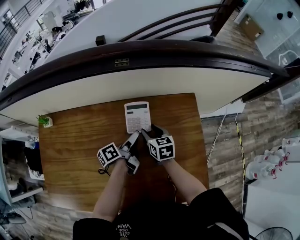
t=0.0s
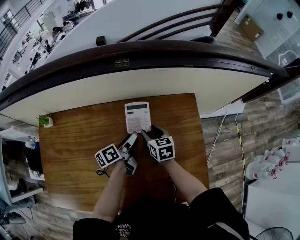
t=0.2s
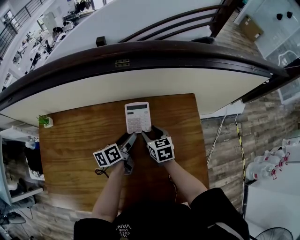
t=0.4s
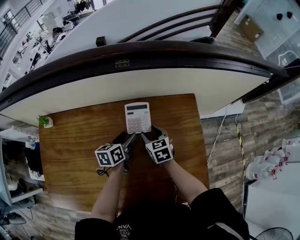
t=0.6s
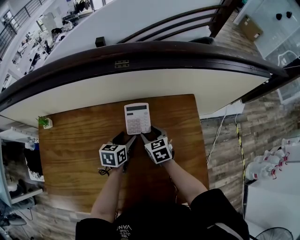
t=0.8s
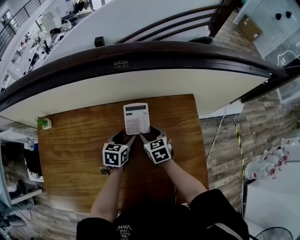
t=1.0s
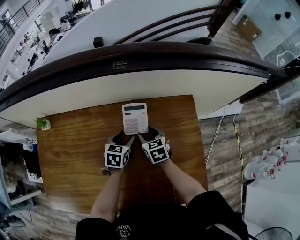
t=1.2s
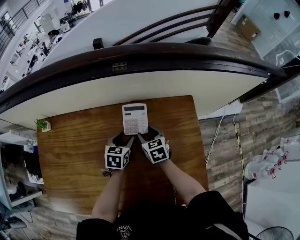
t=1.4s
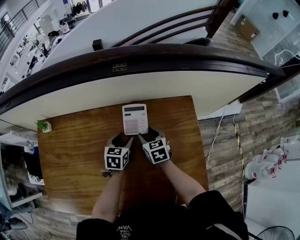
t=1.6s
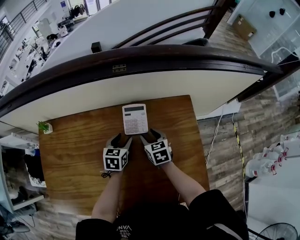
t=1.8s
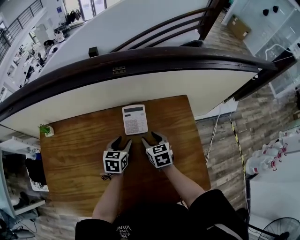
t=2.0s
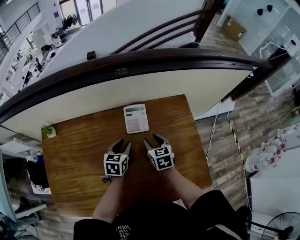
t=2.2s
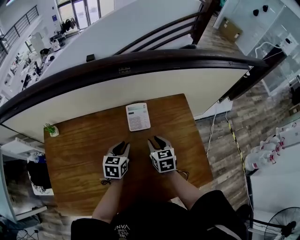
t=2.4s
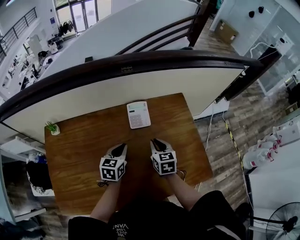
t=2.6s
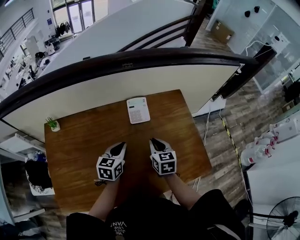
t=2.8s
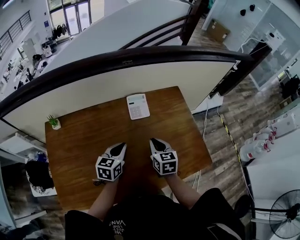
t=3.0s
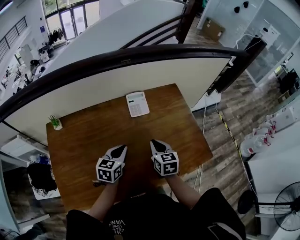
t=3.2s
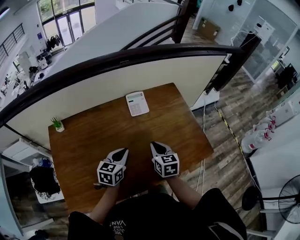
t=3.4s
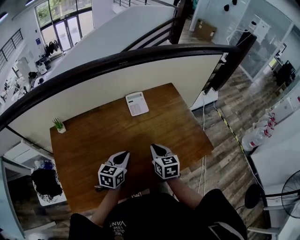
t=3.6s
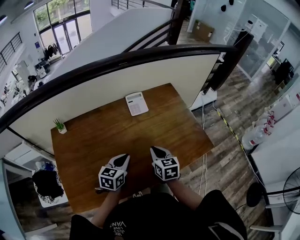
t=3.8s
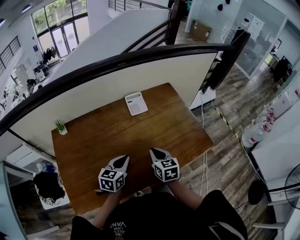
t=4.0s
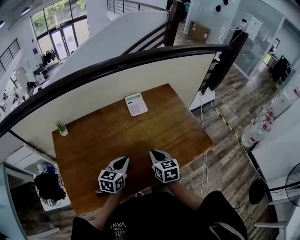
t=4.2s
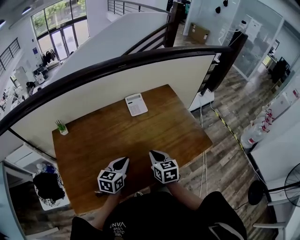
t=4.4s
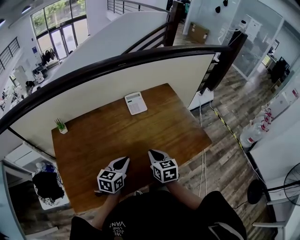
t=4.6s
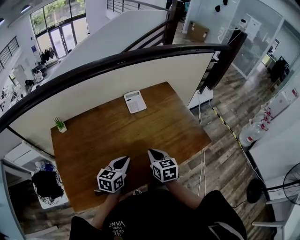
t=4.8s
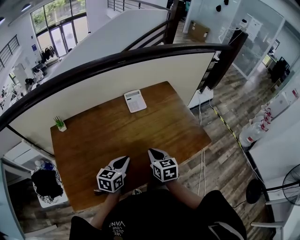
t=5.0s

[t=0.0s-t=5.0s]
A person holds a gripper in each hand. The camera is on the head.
t=0.0s to t=1.6s: The left gripper twists roughly 60 degrees clockwise, seen from behind.
t=1.6s to t=3.4s: Both grippers travel together backward and upward, some 25 cm. The right gripper changes its angle by about 30 degrees, and closes up. The left gripper changes its angle by roughly 20 degrees, and closes its fingers.
t=3.4s to t=5.0s: The grippers both shift backward by about 10 cm.

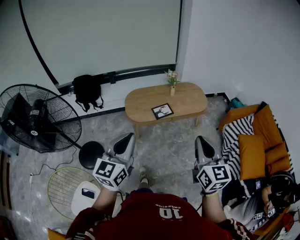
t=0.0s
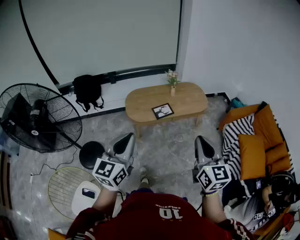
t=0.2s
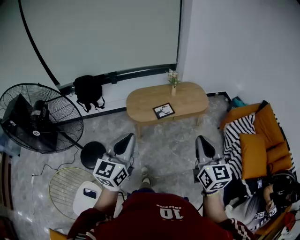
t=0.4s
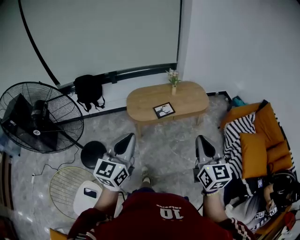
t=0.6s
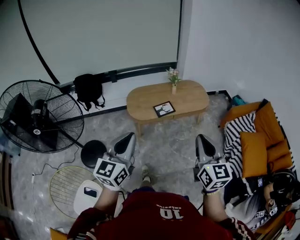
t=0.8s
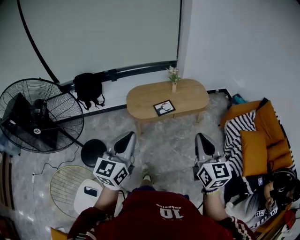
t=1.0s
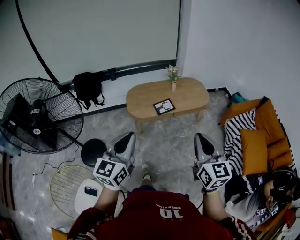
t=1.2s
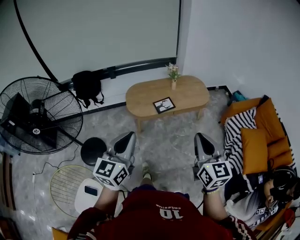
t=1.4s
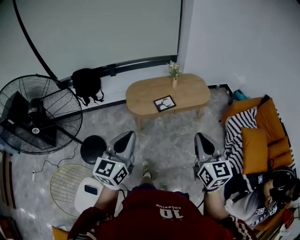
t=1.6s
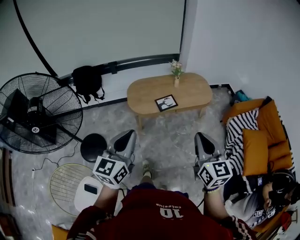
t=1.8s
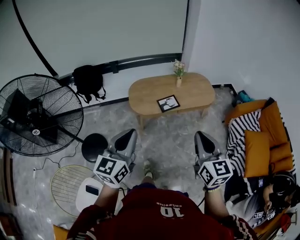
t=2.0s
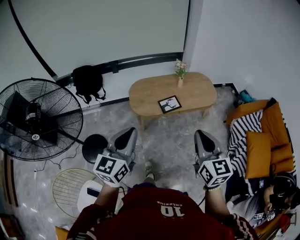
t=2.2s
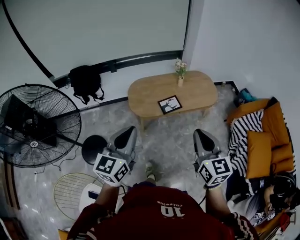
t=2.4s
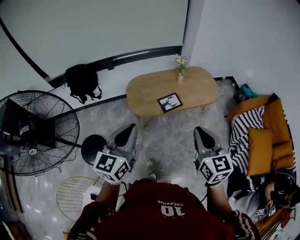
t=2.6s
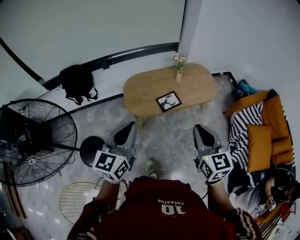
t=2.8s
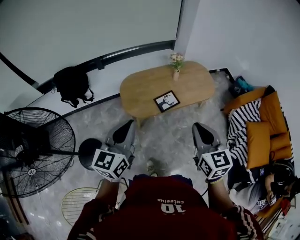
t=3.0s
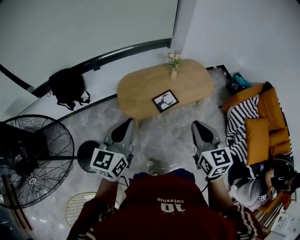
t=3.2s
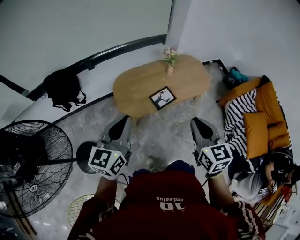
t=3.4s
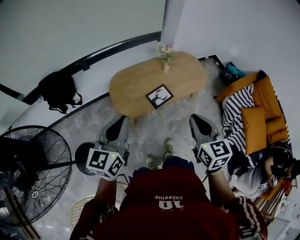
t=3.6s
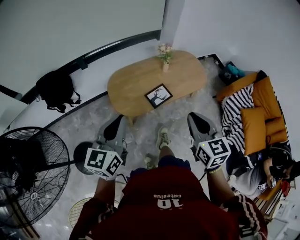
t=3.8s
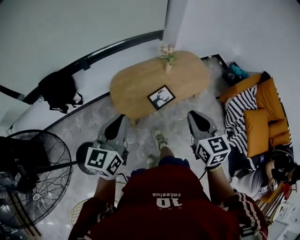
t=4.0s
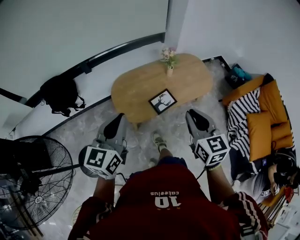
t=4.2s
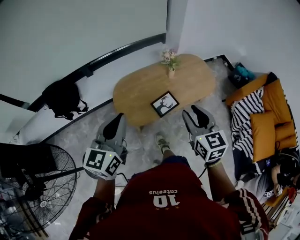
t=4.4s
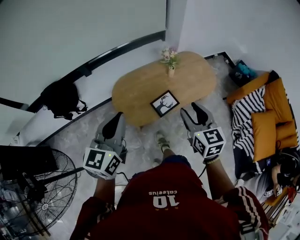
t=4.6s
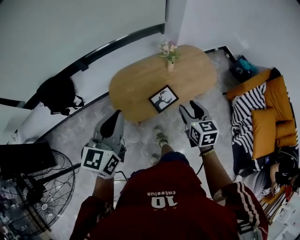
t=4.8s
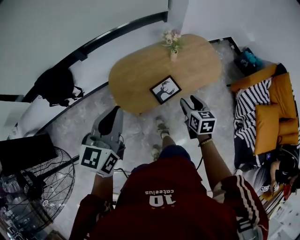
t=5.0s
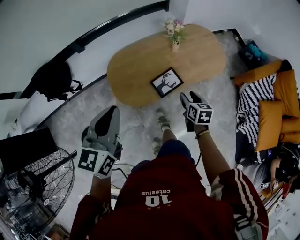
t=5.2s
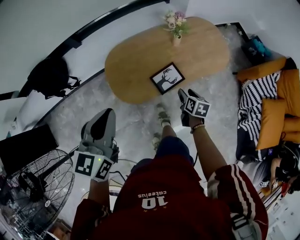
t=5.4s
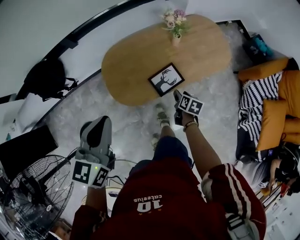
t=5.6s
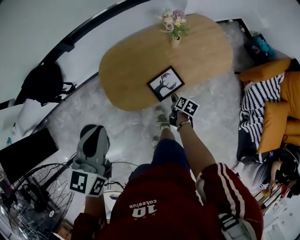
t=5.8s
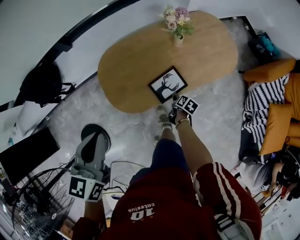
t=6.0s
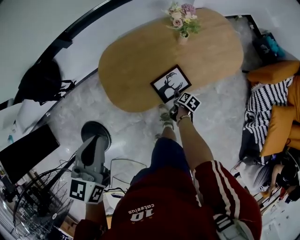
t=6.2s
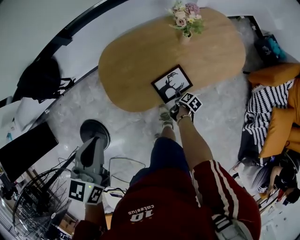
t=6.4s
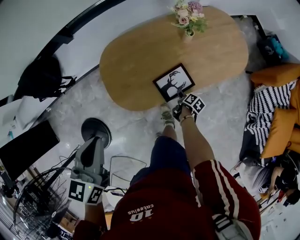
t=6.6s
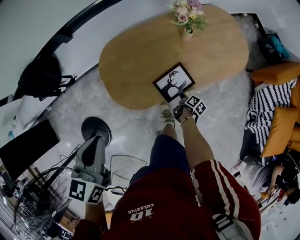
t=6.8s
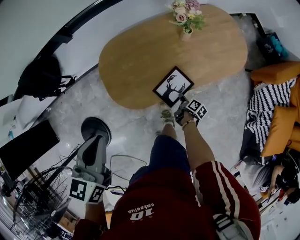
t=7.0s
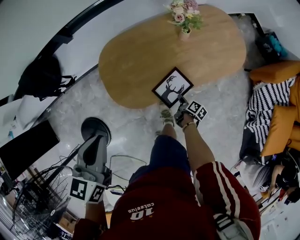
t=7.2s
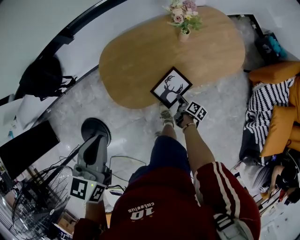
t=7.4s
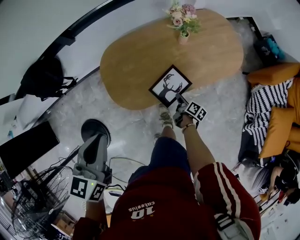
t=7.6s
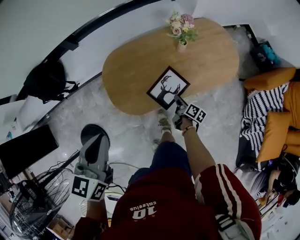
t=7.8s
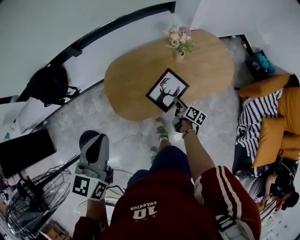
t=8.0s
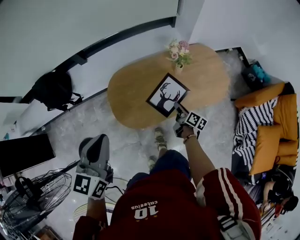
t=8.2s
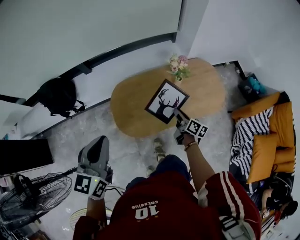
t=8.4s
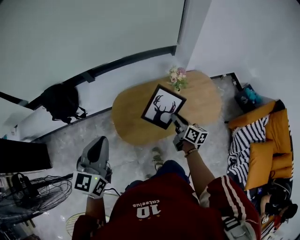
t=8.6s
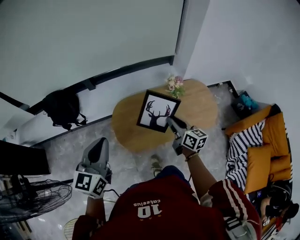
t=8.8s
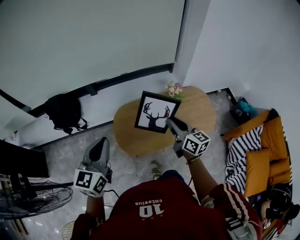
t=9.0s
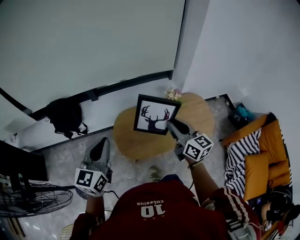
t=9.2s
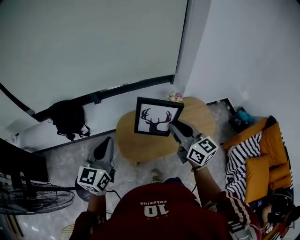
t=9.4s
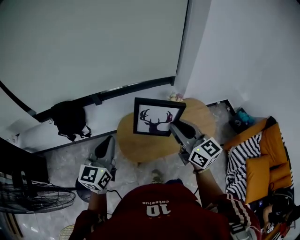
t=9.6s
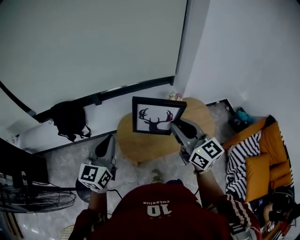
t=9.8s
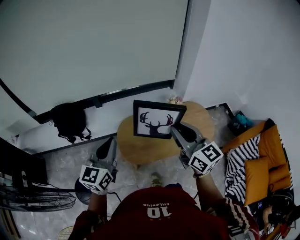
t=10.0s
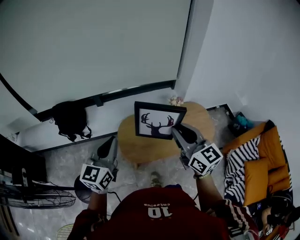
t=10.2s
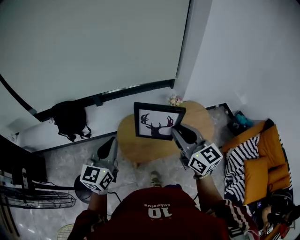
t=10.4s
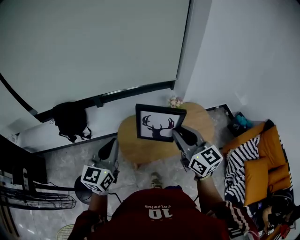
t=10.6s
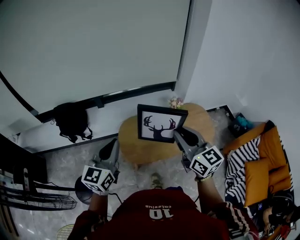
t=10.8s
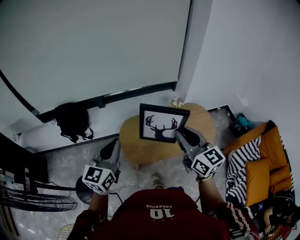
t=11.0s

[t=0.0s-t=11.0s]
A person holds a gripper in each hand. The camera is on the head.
t=0.0s to t=1.6s: The grippers move only a little.
t=1.6s to t=3.2s: Both grippers travel together forward and to the left, roughly 30 cm.
t=3.2s to t=4.8s: The right gripper heads forward and downward, covering about 25 cm, and opens its fingers. Meanwhile the left gripper goes about 15 cm forward.
t=4.8s to t=6.2s: The right gripper is displaced downward by about 50 cm, and rolls clockwise, seen from behind, by about 60 degrees. Meanwhile the left gripper heads downward and forward, covering approximately 15 cm, and rotates some 20 degrees.
t=6.2s to t=7.8s: The right gripper is displaced upward by approximately 10 cm, angles its fingers upward, by about 30 degrees, and closes.
t=7.8s to t=9.4s: The left gripper is displaced upward by approximately 15 cm, and changes its angle by approximately 30 degrees; the right gripper shifts roughly 60 cm upward, and rotates around the line of its fingers by some 60 degrees, counterclockwise from behind.
t=9.4s to t=11.0s: The right gripper travels upward by approximately 5 cm.

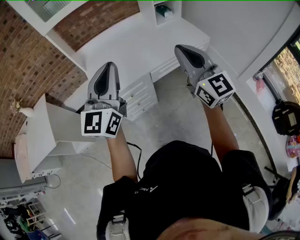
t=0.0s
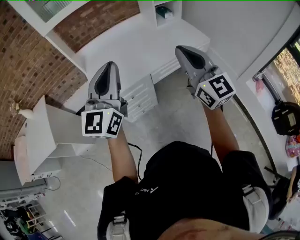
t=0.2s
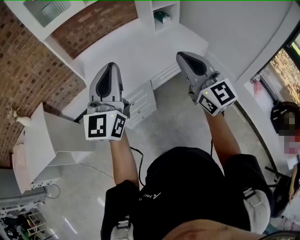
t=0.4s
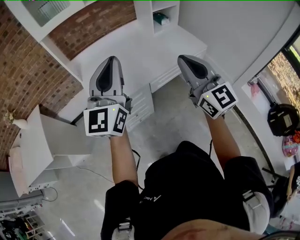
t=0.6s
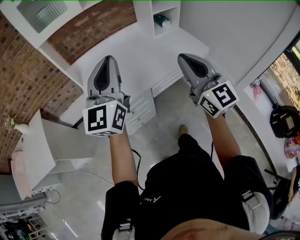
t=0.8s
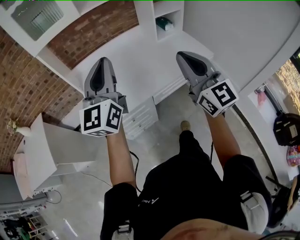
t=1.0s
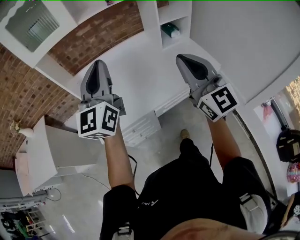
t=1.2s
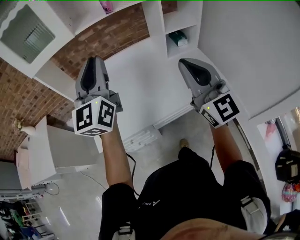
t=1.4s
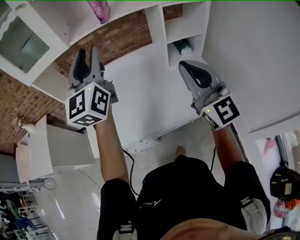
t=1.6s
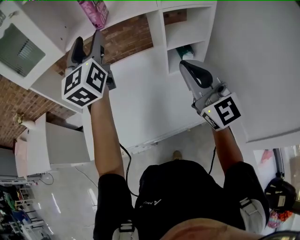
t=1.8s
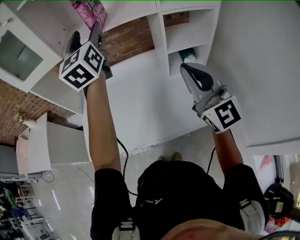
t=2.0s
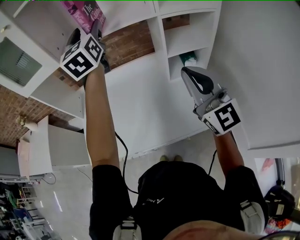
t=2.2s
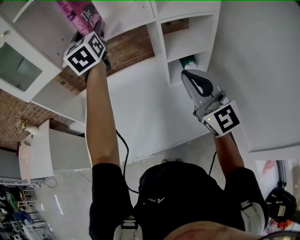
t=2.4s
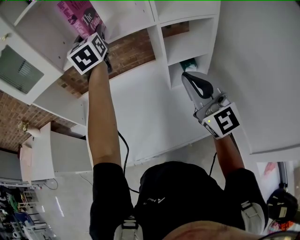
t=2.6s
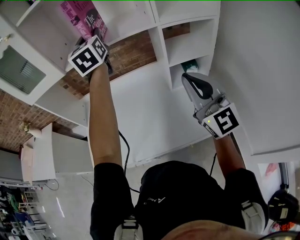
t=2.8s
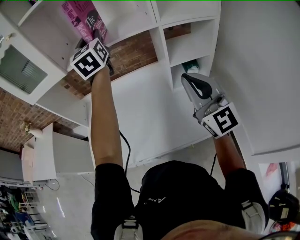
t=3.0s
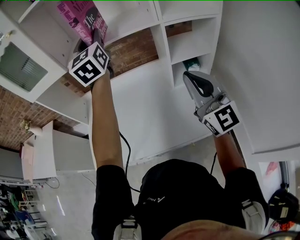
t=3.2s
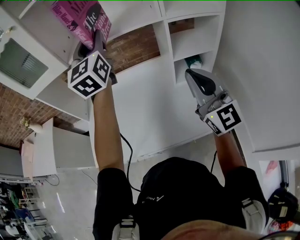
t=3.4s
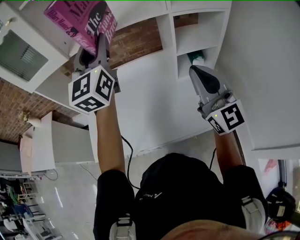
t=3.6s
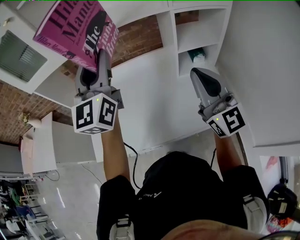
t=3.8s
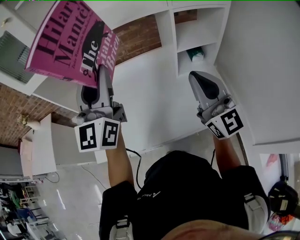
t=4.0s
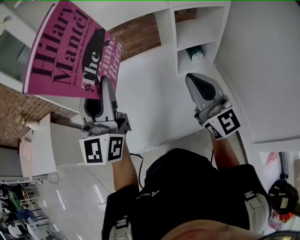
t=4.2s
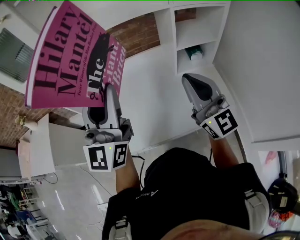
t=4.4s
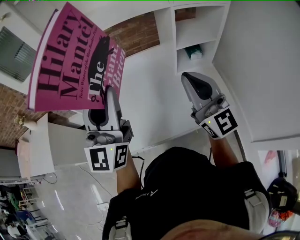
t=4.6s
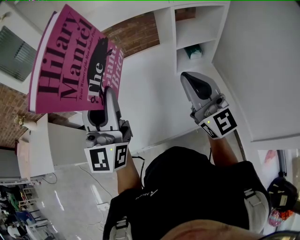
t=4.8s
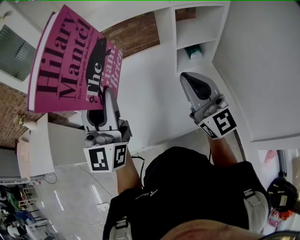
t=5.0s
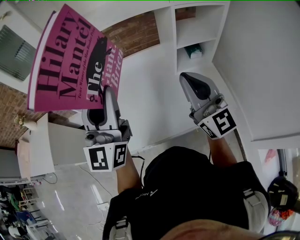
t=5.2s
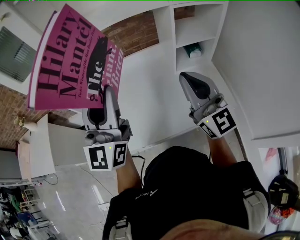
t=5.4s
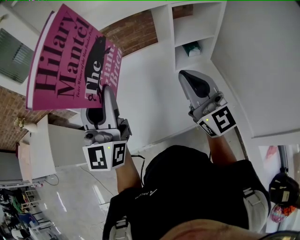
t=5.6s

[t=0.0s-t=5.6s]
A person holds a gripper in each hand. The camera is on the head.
t=0.0s to t=1.4s: The grippers both shift forward by some 30 cm.
t=1.4s to t=2.8s: The left gripper moves forward and to the right, roughly 35 cm, rotates roughly 20 degrees, and opens and closes again, while the right gripper travels forward and to the right by some 20 cm.
t=2.8s to t=4.2s: The left gripper moves backward, roughly 20 cm, and swivels roughly 20 degrees, while the right gripper ends up roughly 5 cm from where it was.
t=4.2s to t=5.6s: The left gripper travels backward by roughly 5 cm.

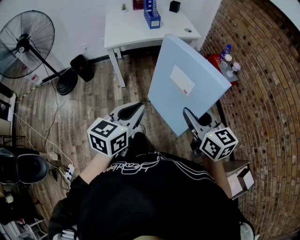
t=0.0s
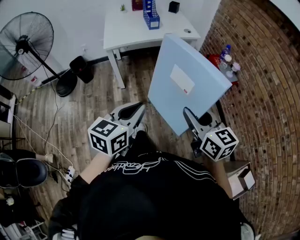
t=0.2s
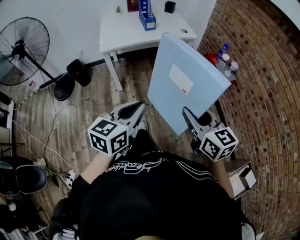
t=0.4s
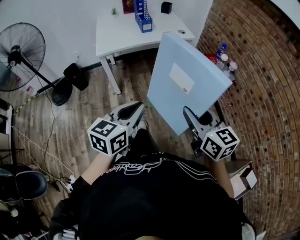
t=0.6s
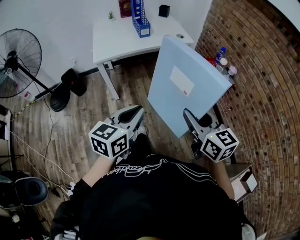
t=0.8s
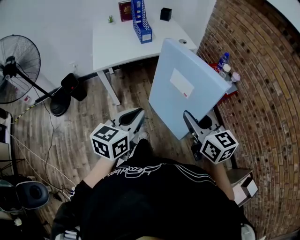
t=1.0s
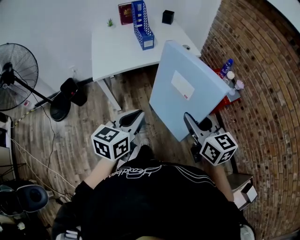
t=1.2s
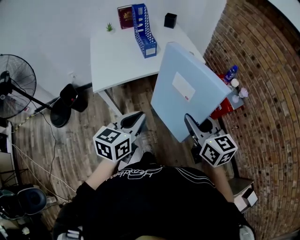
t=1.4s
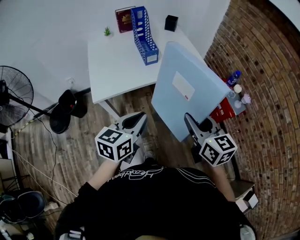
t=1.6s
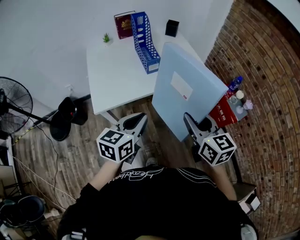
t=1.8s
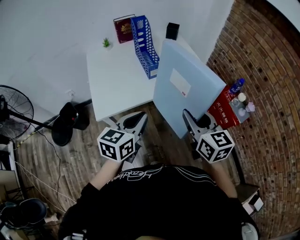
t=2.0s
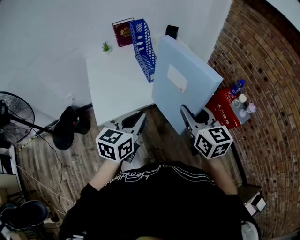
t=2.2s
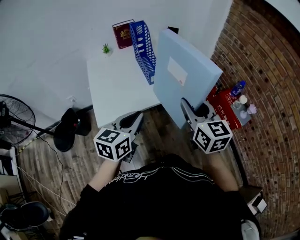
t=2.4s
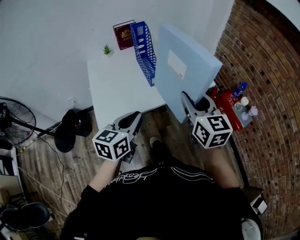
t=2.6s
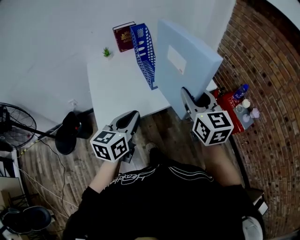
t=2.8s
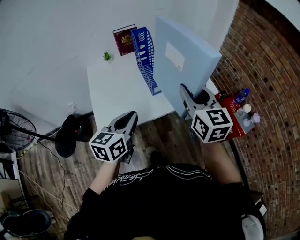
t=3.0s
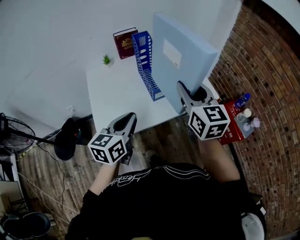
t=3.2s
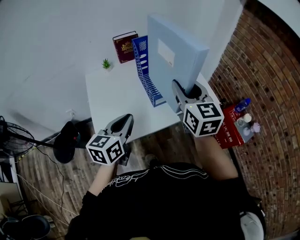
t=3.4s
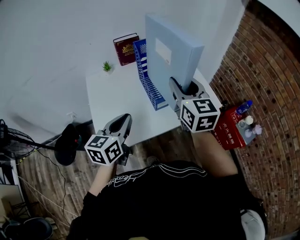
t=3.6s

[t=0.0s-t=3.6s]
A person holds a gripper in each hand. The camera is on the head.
t=0.0s to t=1.8s: The pair of grippers is taken forward, approximately 40 cm.
t=1.8s to t=3.6s: The two grippers go approximately 25 cm forward and to the left.
